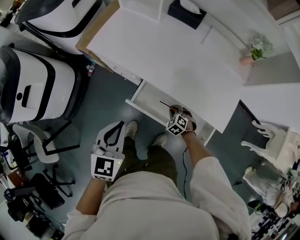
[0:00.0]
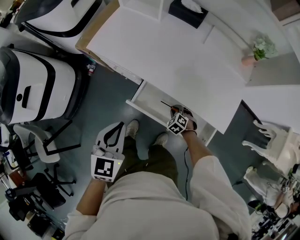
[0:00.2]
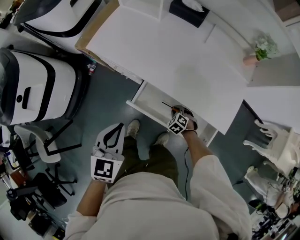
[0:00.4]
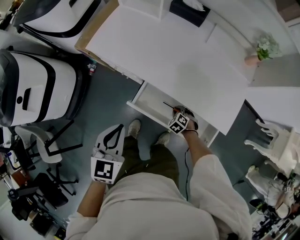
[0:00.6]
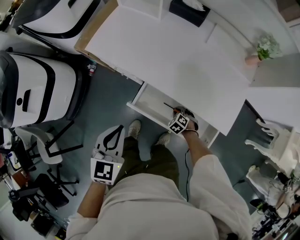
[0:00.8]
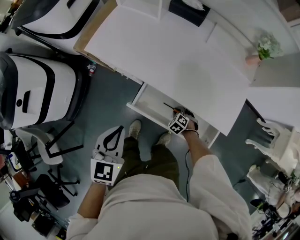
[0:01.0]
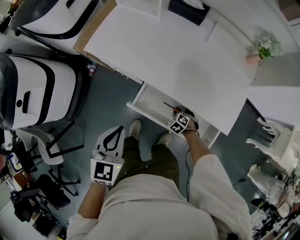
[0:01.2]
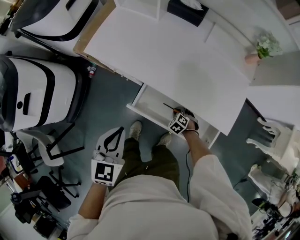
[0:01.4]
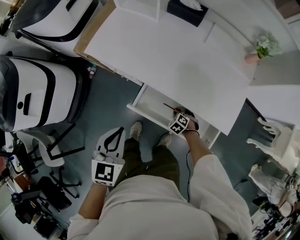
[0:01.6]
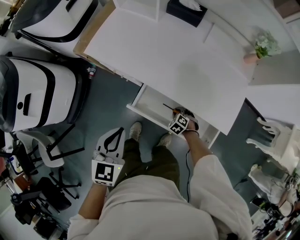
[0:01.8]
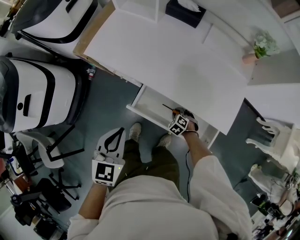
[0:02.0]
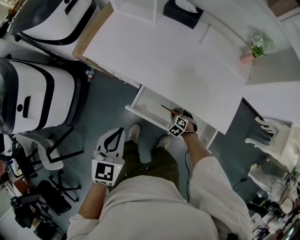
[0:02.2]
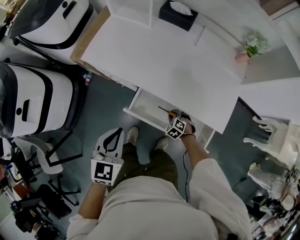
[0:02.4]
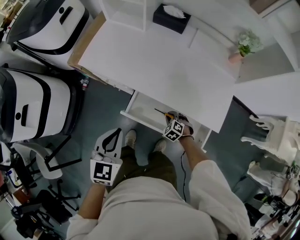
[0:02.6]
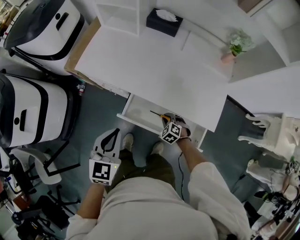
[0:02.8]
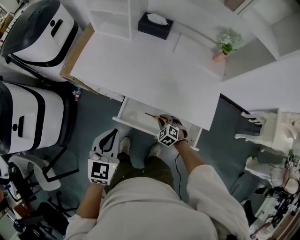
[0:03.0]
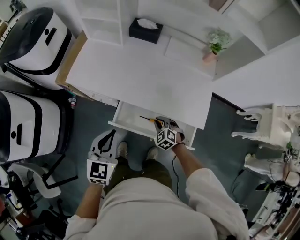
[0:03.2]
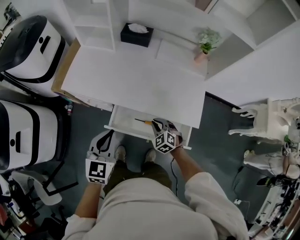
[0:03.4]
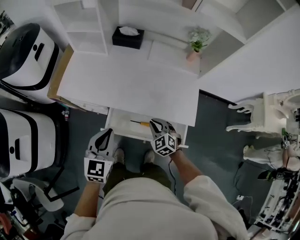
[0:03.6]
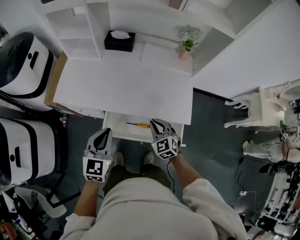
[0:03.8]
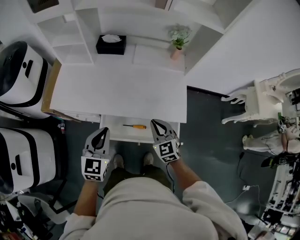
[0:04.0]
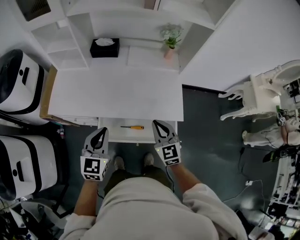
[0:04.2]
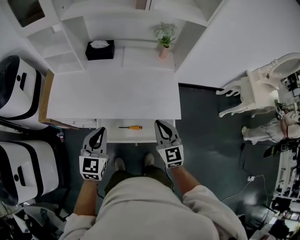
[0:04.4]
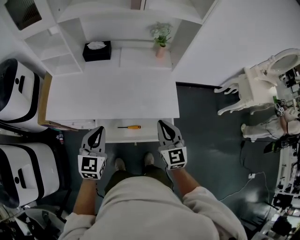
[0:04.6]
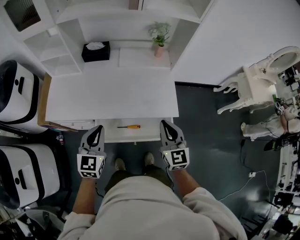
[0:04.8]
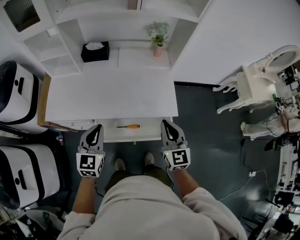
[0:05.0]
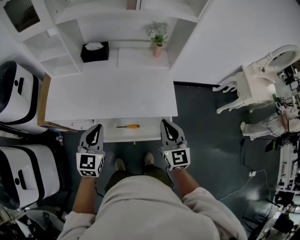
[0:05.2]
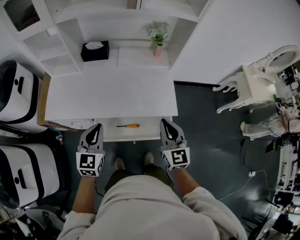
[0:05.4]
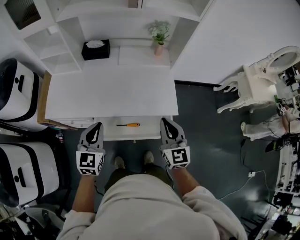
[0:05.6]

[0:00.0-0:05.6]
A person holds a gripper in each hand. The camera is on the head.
0:00.0 to 0:01.4: The right gripper is displaced downward by some 5 cm.
0:01.4 to 0:02.8: The right gripper shifts about 10 cm upward.
0:02.8 to 0:04.2: The right gripper moves upward, some 30 cm, and angles its fingers upward, by roughly 40 degrees; the left gripper travels to the right and forward by about 10 cm.
0:04.2 to 0:05.6: The right gripper shifts some 10 cm upward and to the right.

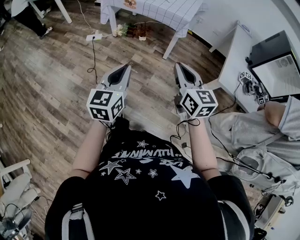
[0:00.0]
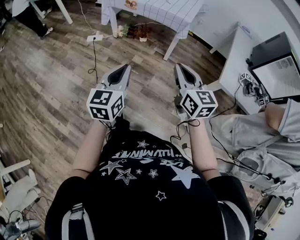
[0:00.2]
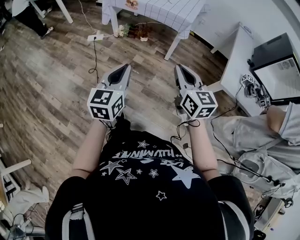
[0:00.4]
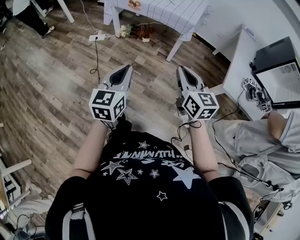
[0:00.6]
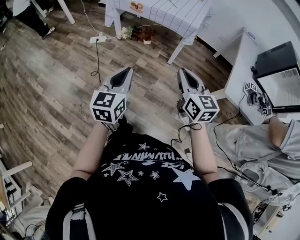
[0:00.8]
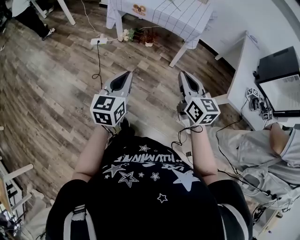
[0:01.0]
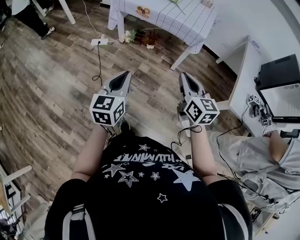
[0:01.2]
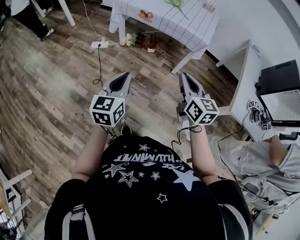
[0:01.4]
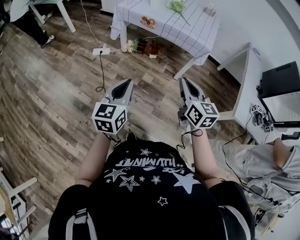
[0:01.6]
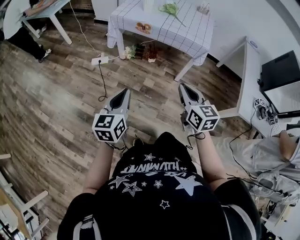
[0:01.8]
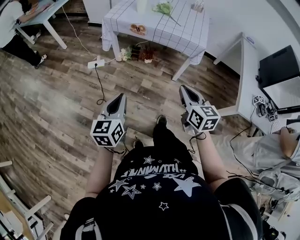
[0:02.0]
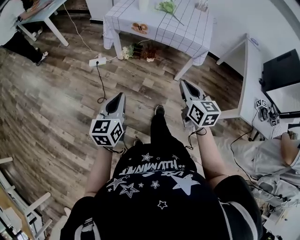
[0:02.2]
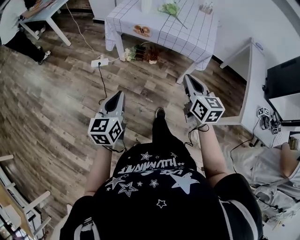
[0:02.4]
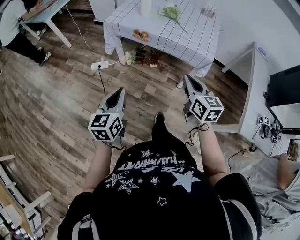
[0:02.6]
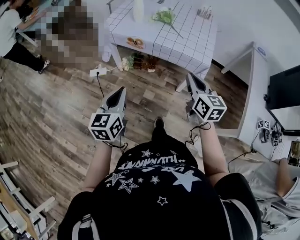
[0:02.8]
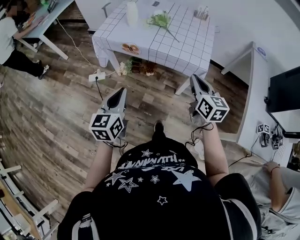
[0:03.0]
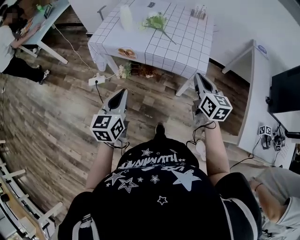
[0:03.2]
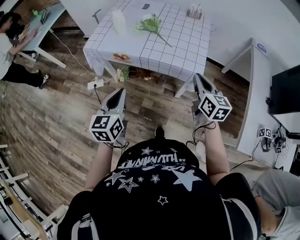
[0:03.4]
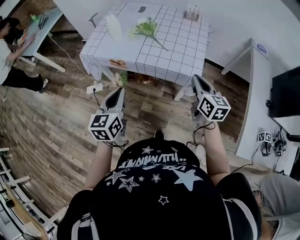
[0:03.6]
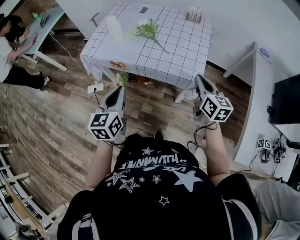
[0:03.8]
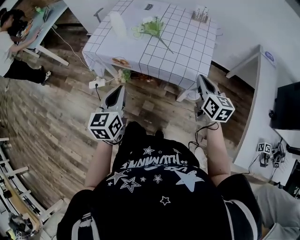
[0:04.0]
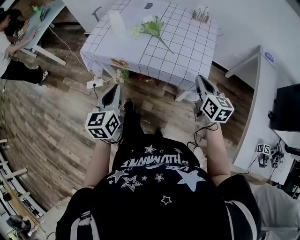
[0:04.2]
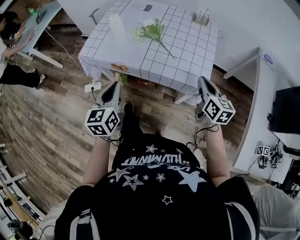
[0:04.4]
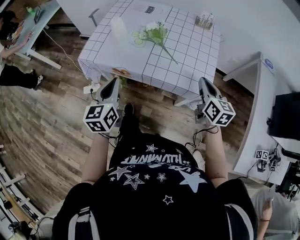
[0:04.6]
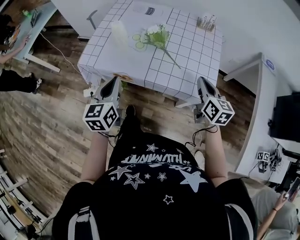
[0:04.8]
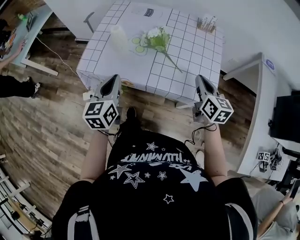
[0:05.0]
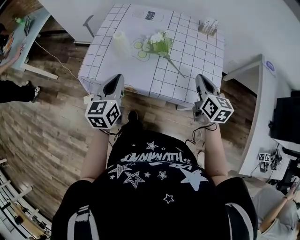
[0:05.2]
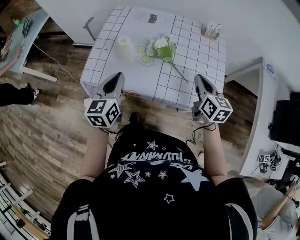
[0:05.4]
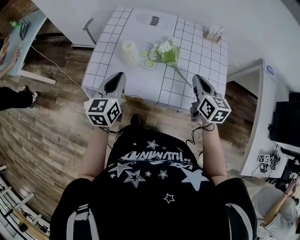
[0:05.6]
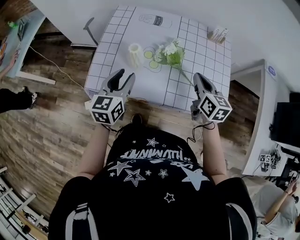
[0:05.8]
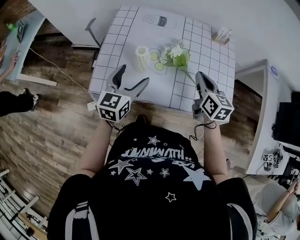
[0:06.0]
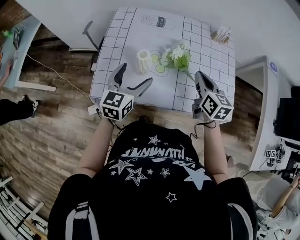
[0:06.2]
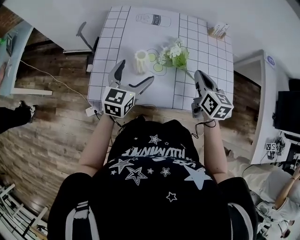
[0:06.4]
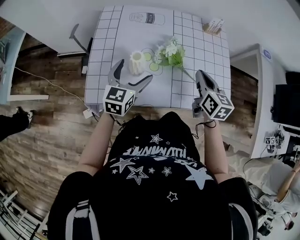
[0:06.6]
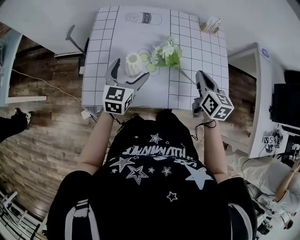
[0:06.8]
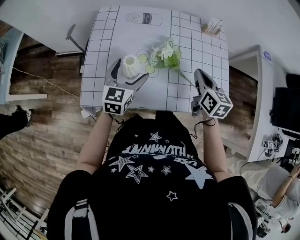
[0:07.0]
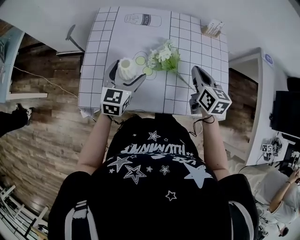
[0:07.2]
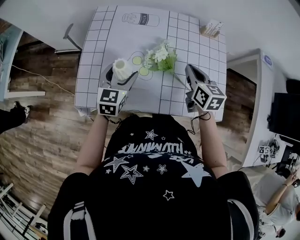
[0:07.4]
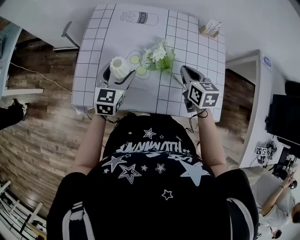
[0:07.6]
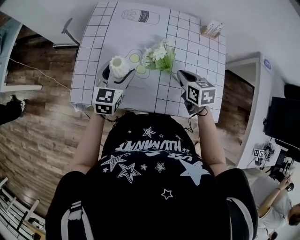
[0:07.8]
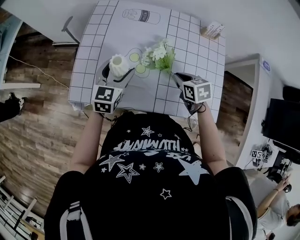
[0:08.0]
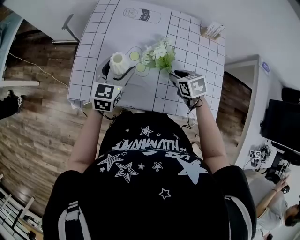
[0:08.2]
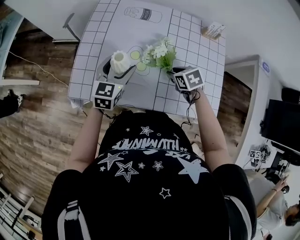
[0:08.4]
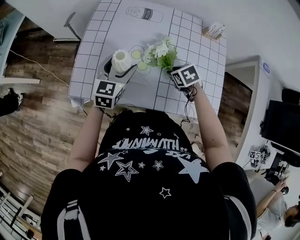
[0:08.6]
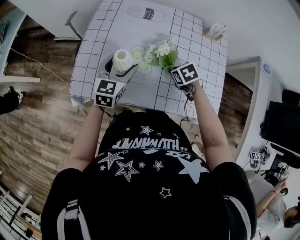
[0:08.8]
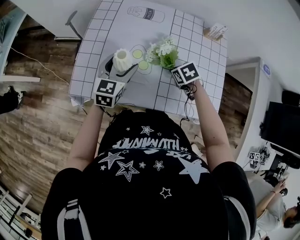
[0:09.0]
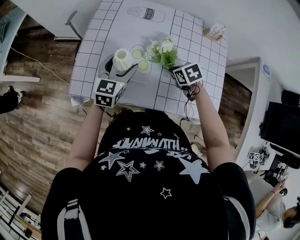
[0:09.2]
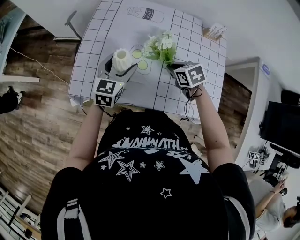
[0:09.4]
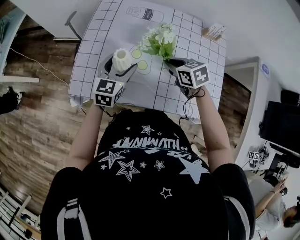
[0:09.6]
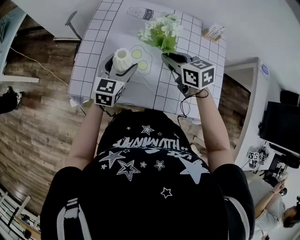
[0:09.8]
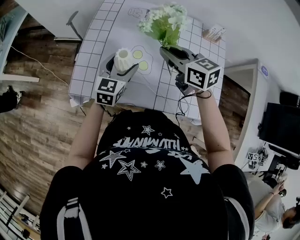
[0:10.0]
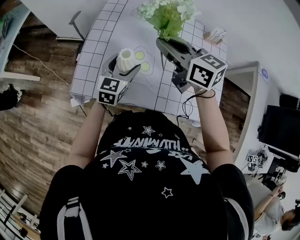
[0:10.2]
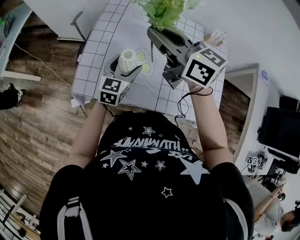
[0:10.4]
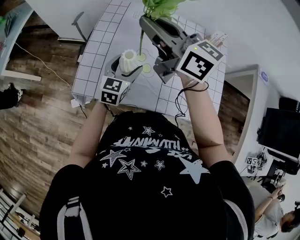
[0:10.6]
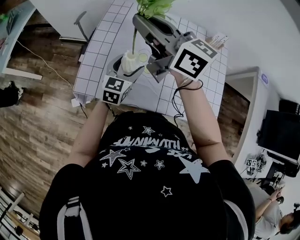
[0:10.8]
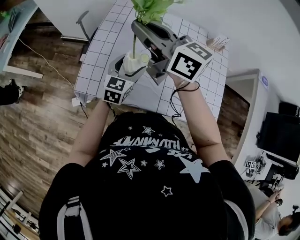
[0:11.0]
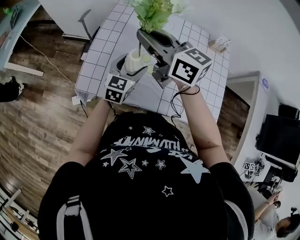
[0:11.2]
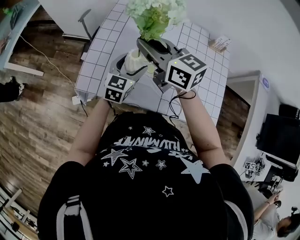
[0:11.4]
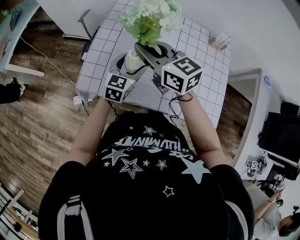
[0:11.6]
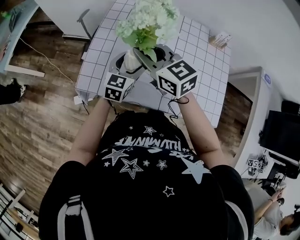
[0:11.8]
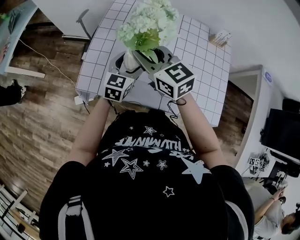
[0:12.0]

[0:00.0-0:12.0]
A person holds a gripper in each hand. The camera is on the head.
0:00.0 to 0:01.6: The grippers both shift forward and to the left by roughly 20 cm.
0:01.6 to 0:03.0: The right gripper is displaced forward and to the right by some 30 cm. The left gripper goes approximately 25 cm forward.
0:03.0 to 0:04.4: The right gripper travels forward and to the right by about 20 cm. The left gripper goes approximately 20 cm forward.
0:04.4 to 0:06.0: The right gripper is displaced forward and to the left by some 25 cm, while the left gripper is displaced forward by about 25 cm, swivels roughly 30 degrees, and opens its fingers.
0:06.0 to 0:07.6: Both grippers move forward and downward, roughly 10 cm.
0:07.6 to 0:09.0: The right gripper heads downward, covering about 10 cm, and tips its fingers downward by roughly 40 degrees.
0:09.0 to 0:10.4: The right gripper heads upward and to the left, covering approximately 35 cm, and tips its fingers upward by some 70 degrees.
0:10.4 to 0:12.0: The right gripper travels downward and to the left by approximately 10 cm.

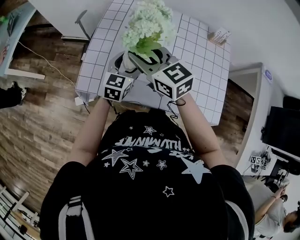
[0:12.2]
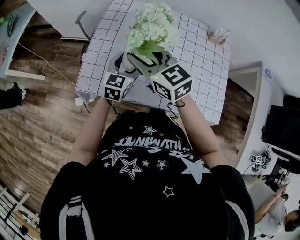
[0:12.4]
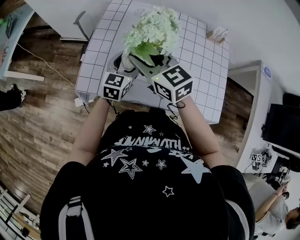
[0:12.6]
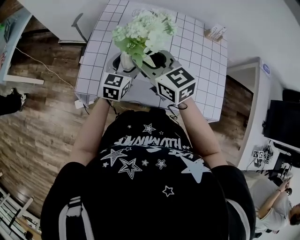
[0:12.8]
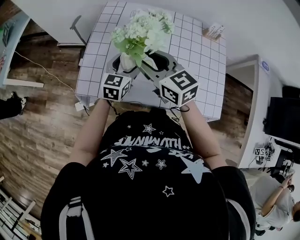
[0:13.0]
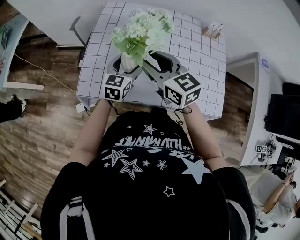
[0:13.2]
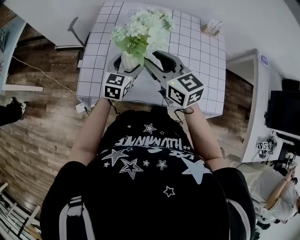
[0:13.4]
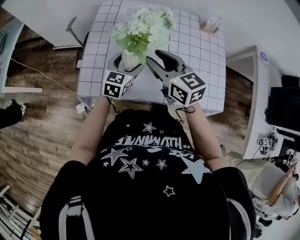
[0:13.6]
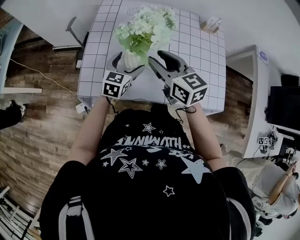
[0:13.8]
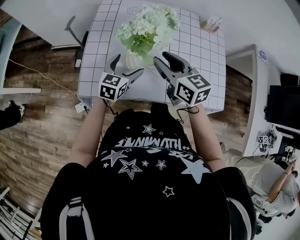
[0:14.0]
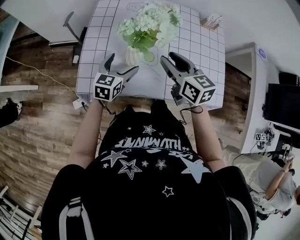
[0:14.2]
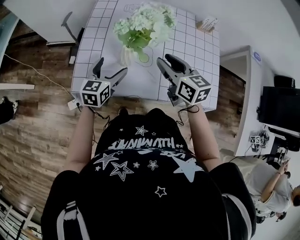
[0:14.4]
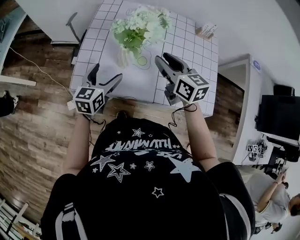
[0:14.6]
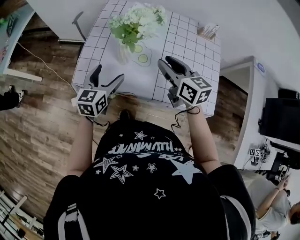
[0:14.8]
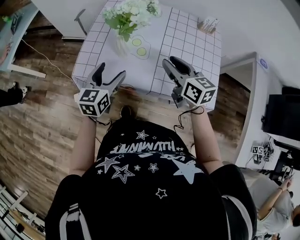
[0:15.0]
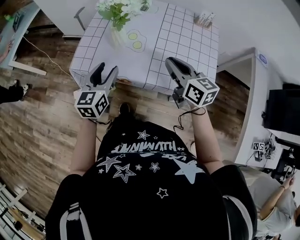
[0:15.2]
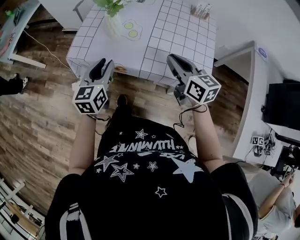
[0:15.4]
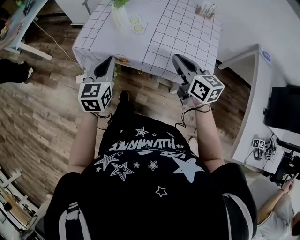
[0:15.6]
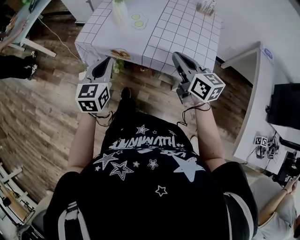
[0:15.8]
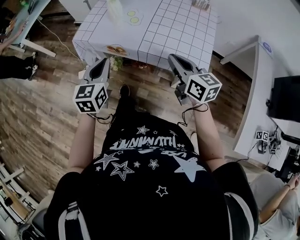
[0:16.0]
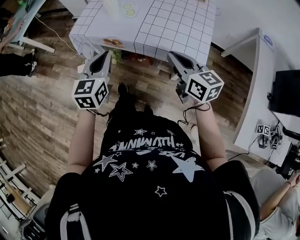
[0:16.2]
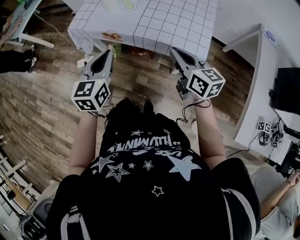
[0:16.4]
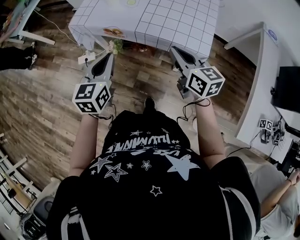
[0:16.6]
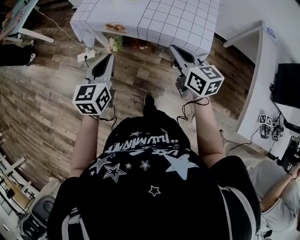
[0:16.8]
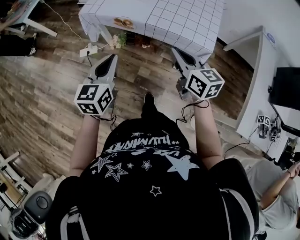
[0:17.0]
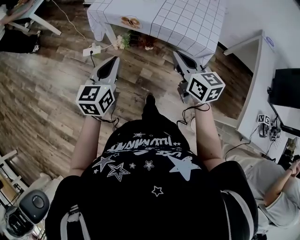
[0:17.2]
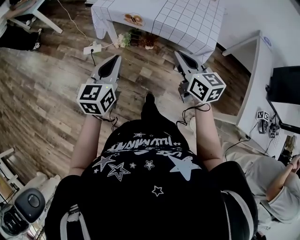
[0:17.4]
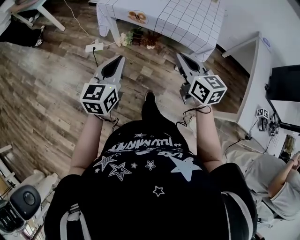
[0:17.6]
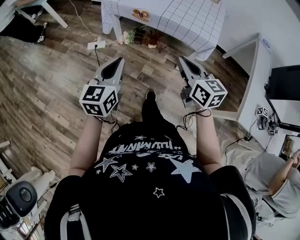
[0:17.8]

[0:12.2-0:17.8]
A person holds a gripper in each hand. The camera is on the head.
0:12.2 to 0:13.6: The right gripper travels to the right by roughly 5 cm.
0:13.6 to 0:15.0: The right gripper heads to the right and backward, covering roughly 15 cm; the left gripper moves backward and upward, roughly 15 cm.
0:15.0 to 0:16.4: Both grippers travel together backward, roughly 25 cm. The left gripper closes; the right gripper closes its fingers.
0:16.4 to 0:17.8: Both grippers move backward and to the left, roughly 25 cm.
